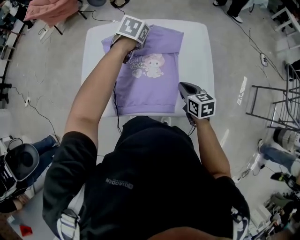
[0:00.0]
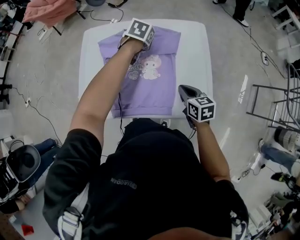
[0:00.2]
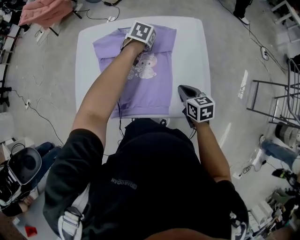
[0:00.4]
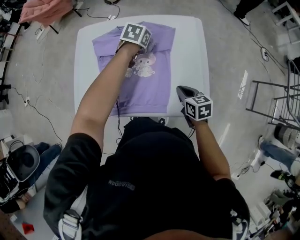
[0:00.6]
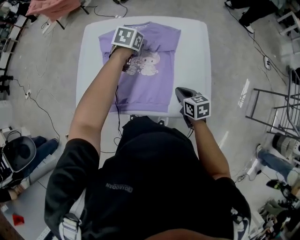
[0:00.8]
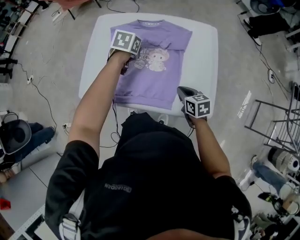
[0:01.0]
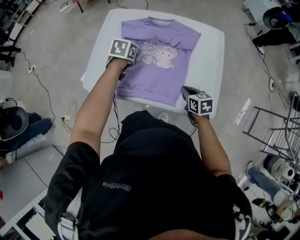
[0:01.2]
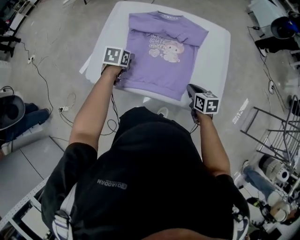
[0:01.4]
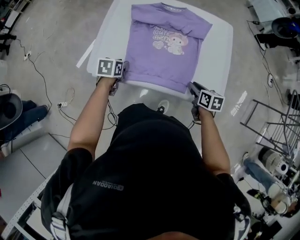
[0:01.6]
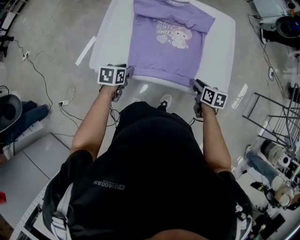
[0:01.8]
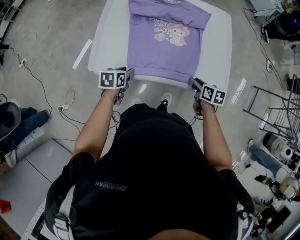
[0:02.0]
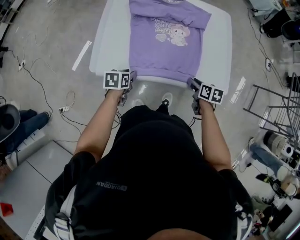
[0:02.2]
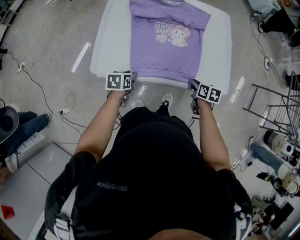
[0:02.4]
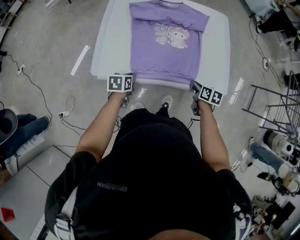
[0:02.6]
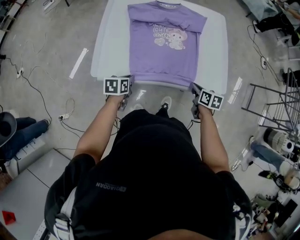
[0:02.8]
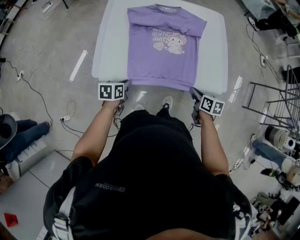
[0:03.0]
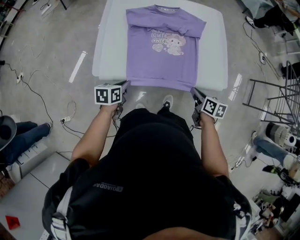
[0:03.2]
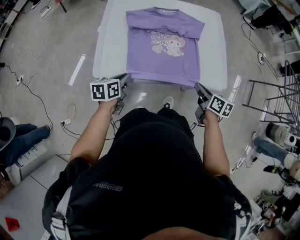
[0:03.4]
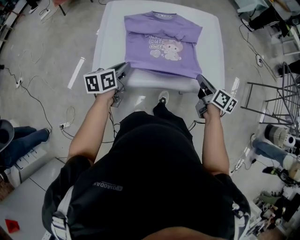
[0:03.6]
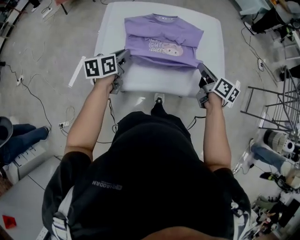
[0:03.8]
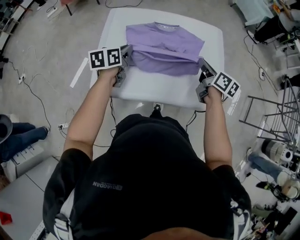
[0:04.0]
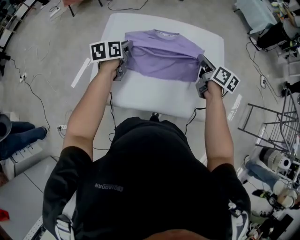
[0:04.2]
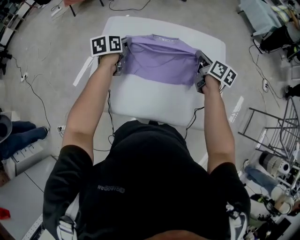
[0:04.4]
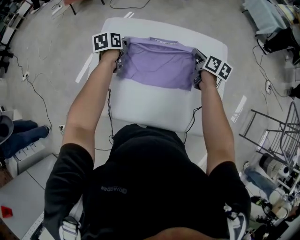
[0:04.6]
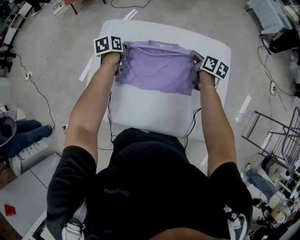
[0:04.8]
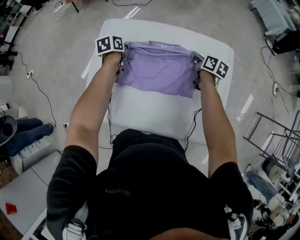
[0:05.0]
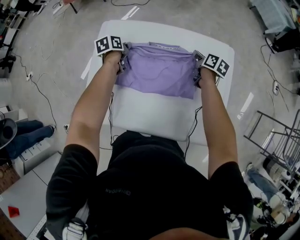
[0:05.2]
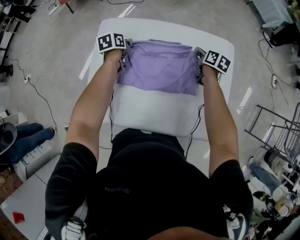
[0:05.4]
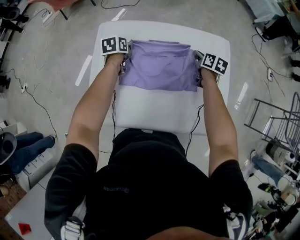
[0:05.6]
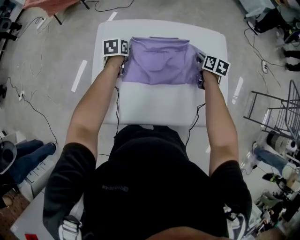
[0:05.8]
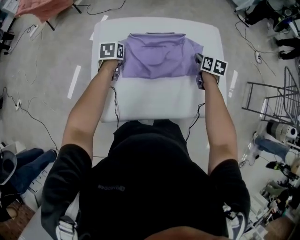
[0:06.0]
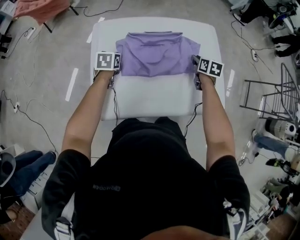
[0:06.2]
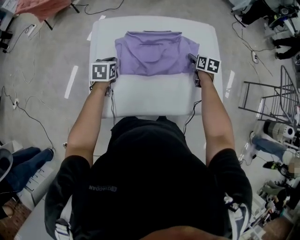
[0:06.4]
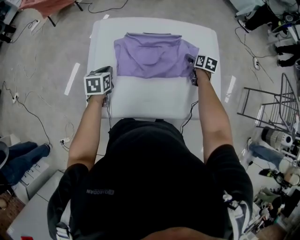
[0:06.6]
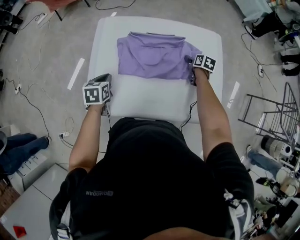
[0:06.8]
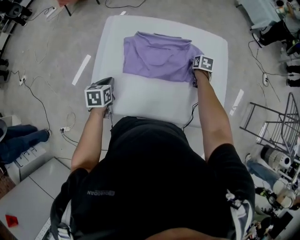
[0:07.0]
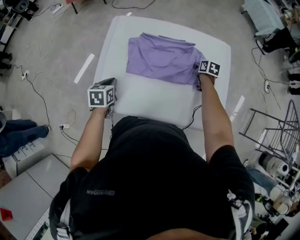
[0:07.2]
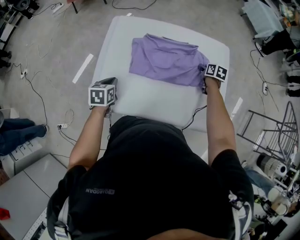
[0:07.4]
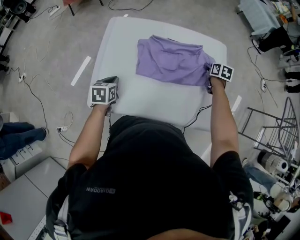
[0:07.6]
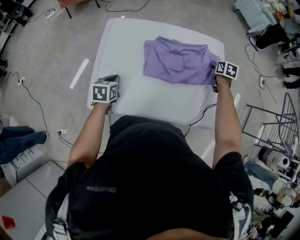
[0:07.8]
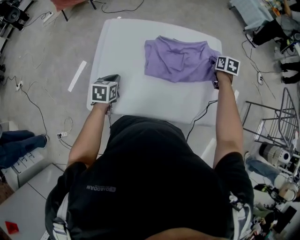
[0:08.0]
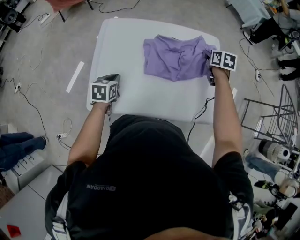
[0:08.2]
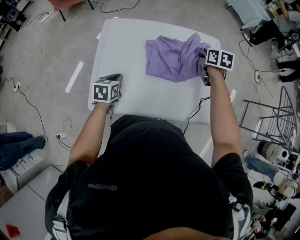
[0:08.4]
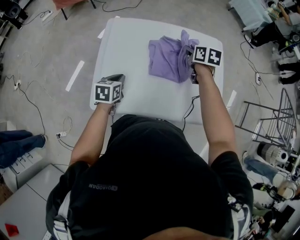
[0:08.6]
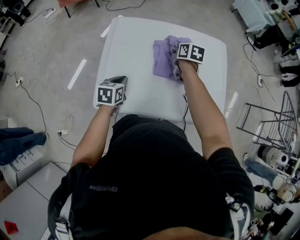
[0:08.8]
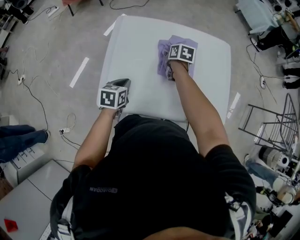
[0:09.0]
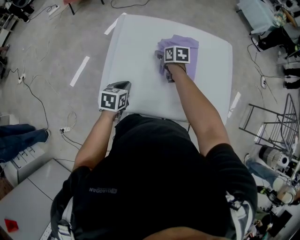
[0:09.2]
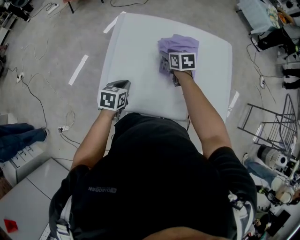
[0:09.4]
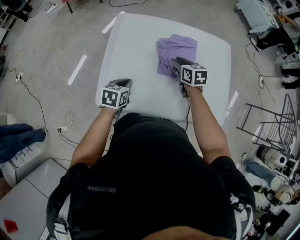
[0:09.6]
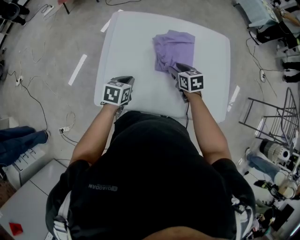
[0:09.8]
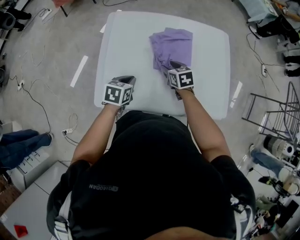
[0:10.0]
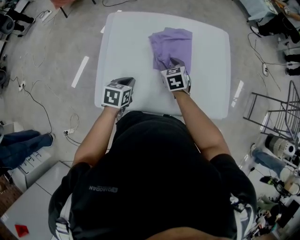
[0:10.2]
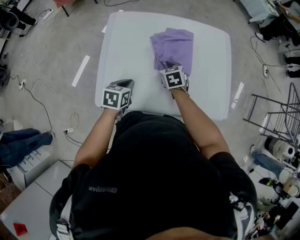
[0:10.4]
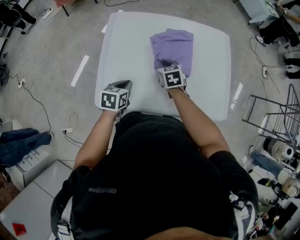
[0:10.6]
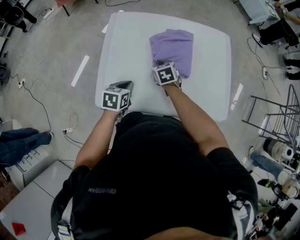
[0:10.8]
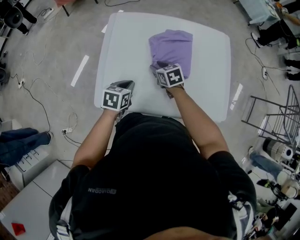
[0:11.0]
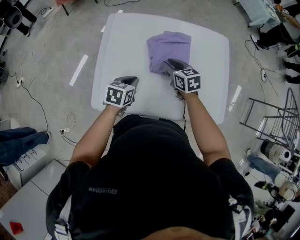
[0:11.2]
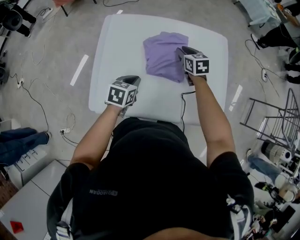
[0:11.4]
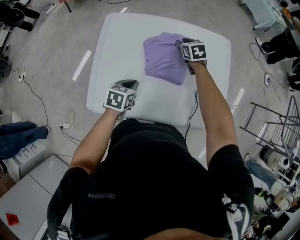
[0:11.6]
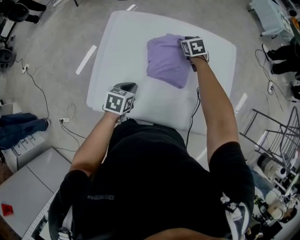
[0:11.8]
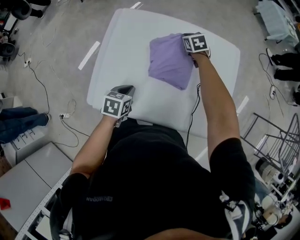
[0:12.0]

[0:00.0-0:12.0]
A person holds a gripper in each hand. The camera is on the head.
0:00.0 to 0:01.6: The right gripper moves downward and backward, some 10 cm, and opens its fingers; the left gripper goes approximately 35 cm backward, to the left and downward, rotates approximately 30 degrees, and opens up.
0:01.6 to 0:03.0: Both grippers travel together backward, about 10 cm. The right gripper closes. Meanwhile the left gripper closes.
0:03.0 to 0:04.4: The two grippers go some 40 cm forward and upward.
0:04.4 to 0:06.0: The two grippers go roughly 10 cm downward. The right gripper goes forward and returns, some 10 cm each way, and rotates roughly 30 degrees; the left gripper rotates about 20 degrees.
0:06.0 to 0:07.6: The left gripper shifts approximately 20 cm backward. The right gripper is displaced to the right by about 5 cm, and opens, then closes once more.
0:07.6 to 0:09.0: The right gripper moves to the left, roughly 25 cm, and opens.
0:09.0 to 0:10.4: The right gripper goes roughly 10 cm backward, and turns by approximately 30 degrees.
0:10.4 to 0:12.0: The right gripper is displaced forward by about 25 cm, and closes up.

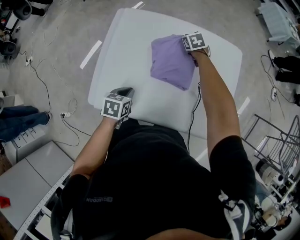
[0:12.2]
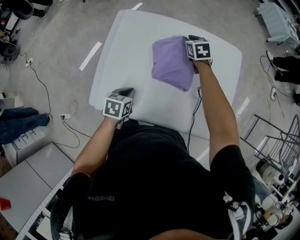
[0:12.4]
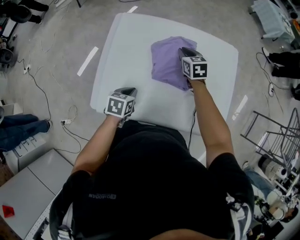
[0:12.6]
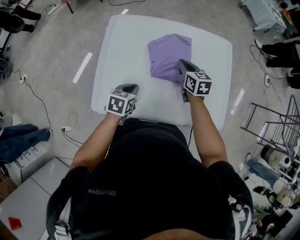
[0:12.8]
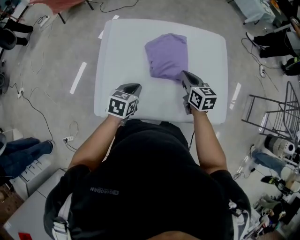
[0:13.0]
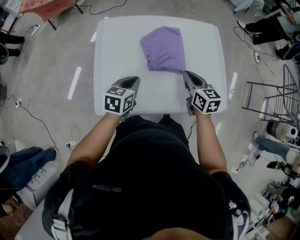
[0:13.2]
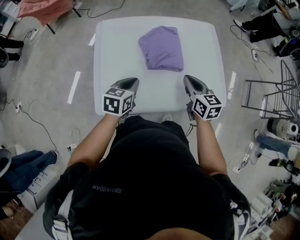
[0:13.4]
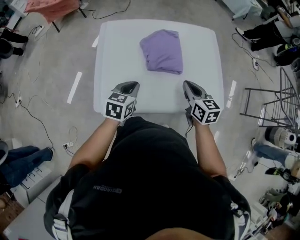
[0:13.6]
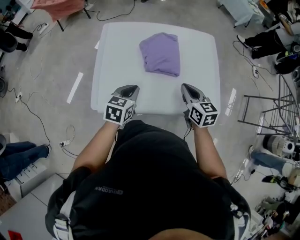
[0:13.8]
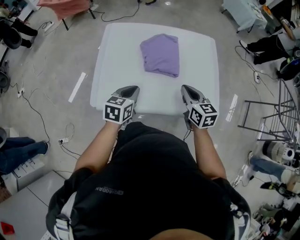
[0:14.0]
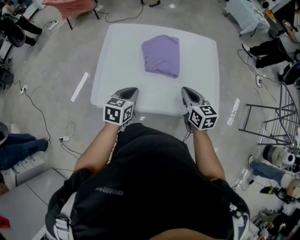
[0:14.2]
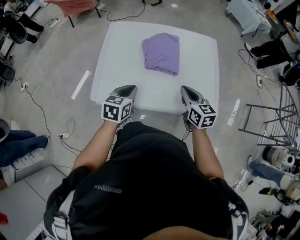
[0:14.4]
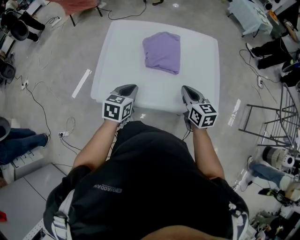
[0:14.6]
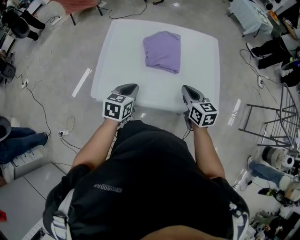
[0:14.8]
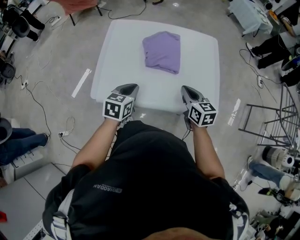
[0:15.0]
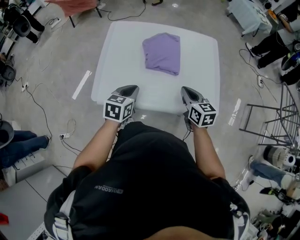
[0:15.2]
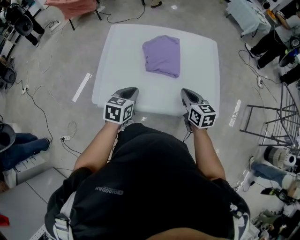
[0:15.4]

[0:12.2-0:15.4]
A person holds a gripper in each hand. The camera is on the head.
0:12.2 to 0:13.8: The left gripper is displaced upward by roughly 10 cm, and turns by about 30 degrees, while the right gripper goes about 40 cm backward and upward, and turns by some 40 degrees.
0:13.8 to 0:15.4: The grippers move only a little.

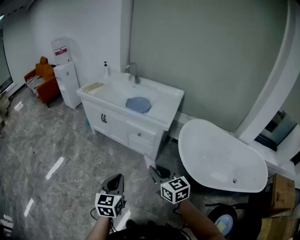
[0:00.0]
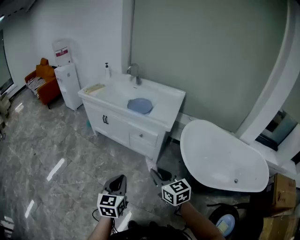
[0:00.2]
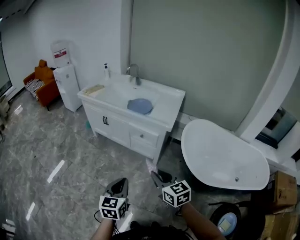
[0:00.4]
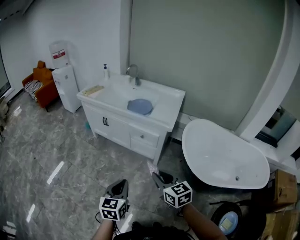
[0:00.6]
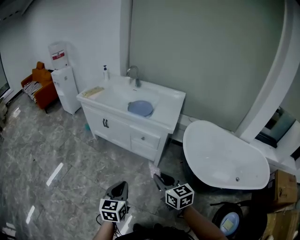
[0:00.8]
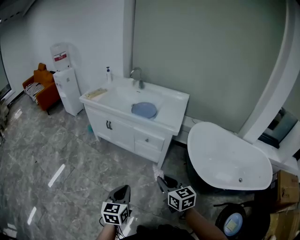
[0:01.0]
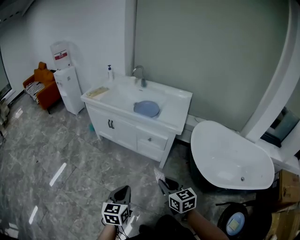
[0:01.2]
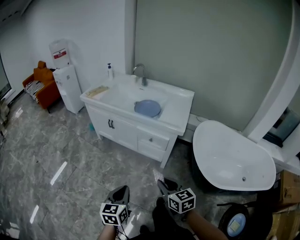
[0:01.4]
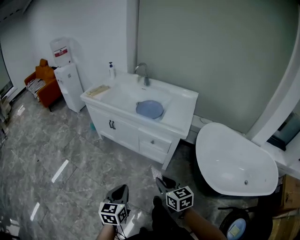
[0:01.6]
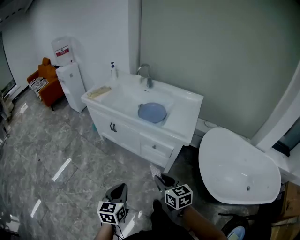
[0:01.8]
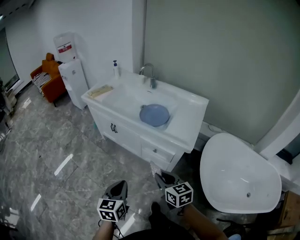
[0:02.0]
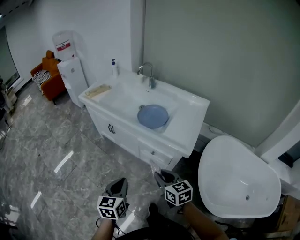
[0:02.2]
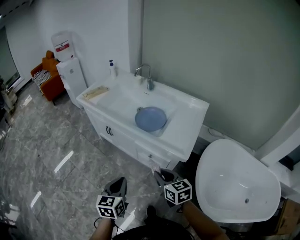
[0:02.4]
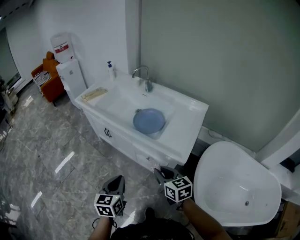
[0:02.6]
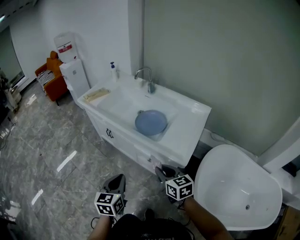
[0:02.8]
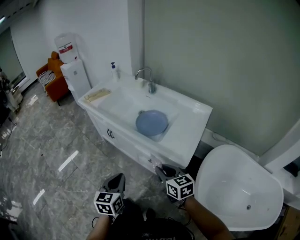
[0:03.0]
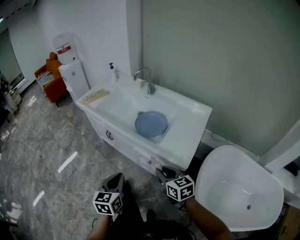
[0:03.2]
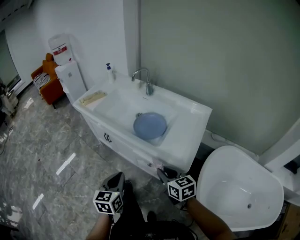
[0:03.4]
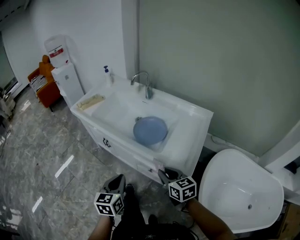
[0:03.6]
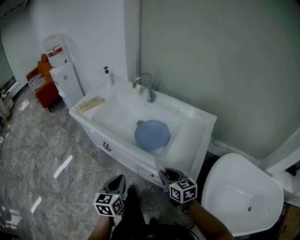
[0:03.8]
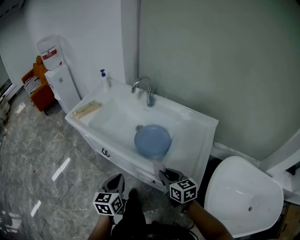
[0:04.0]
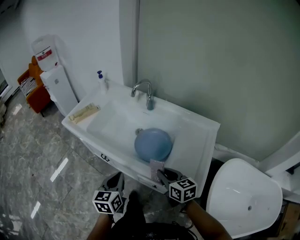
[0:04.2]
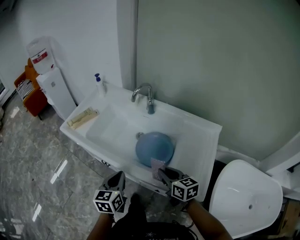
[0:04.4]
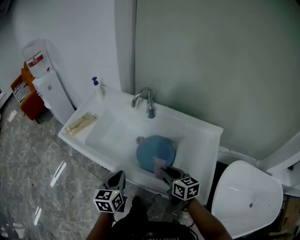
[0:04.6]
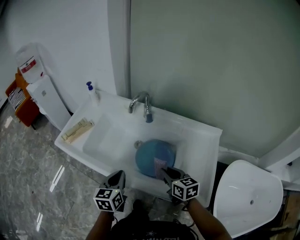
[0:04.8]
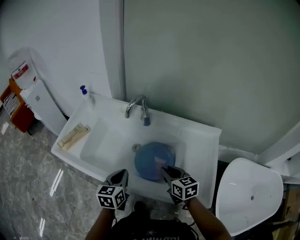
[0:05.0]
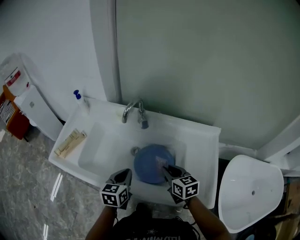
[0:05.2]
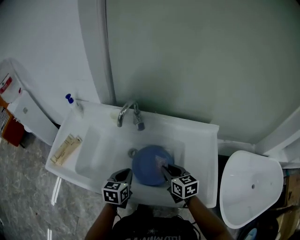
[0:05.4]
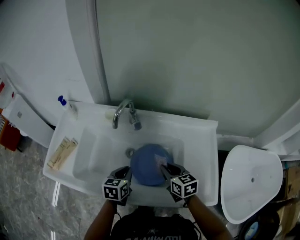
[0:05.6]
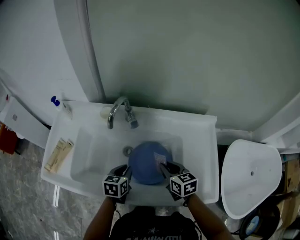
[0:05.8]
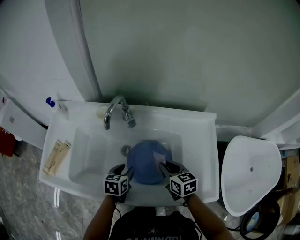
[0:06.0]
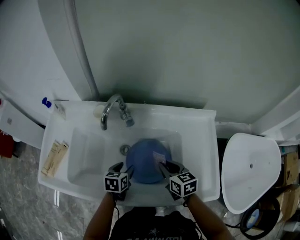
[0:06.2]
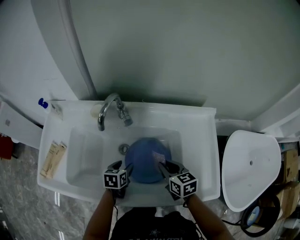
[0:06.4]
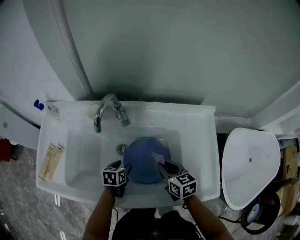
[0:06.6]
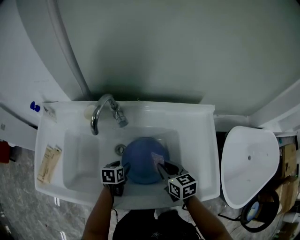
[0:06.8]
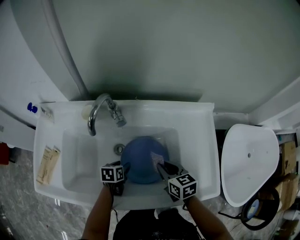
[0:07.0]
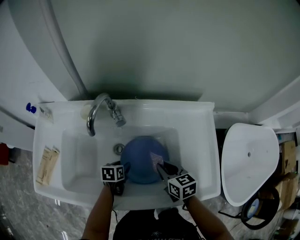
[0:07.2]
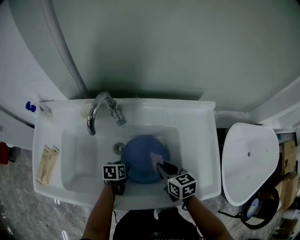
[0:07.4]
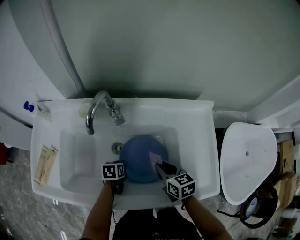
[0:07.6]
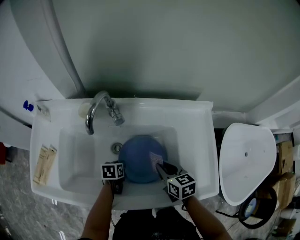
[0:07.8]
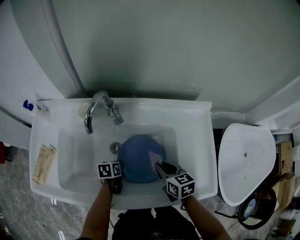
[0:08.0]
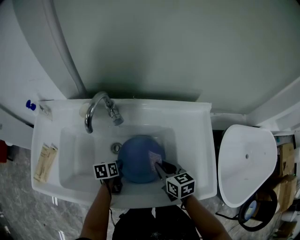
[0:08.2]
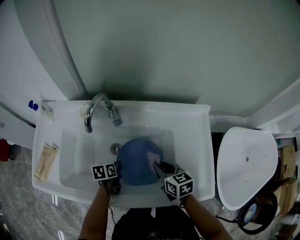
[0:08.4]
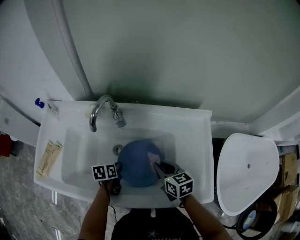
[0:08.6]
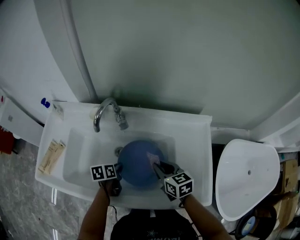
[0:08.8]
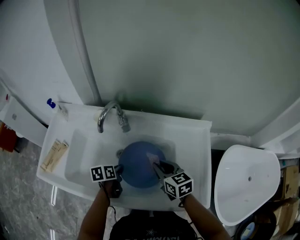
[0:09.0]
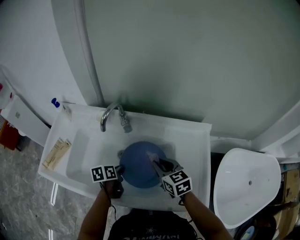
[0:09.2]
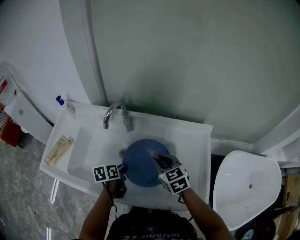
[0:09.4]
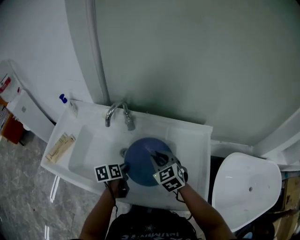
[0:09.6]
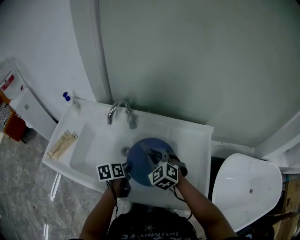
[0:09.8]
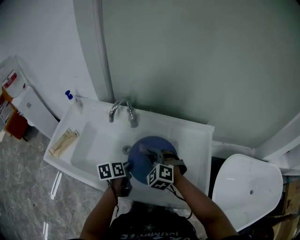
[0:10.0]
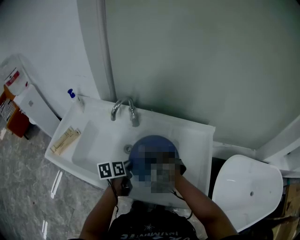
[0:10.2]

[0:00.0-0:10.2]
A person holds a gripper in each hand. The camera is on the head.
0:00.0 to 0:01.4: The right gripper shifts roughly 10 cm downward and to the left. The left gripper travels to the left and downward by about 10 cm.
0:01.4 to 0:03.0: Both grippers travel together forward and to the right, approximately 30 cm.
0:03.0 to 0:04.4: Both grippers move forward, some 25 cm.
0:04.4 to 0:05.8: The right gripper ends up some 15 cm from where it was, and swivels some 20 degrees, while the left gripper ends up some 25 cm from where it was, and swivels about 30 degrees.
0:05.8 to 0:07.2: The left gripper travels downward by about 10 cm, turns by roughly 20 degrees, and opens its fingers.
0:07.2 to 0:08.8: The left gripper heads upward, covering about 5 cm, and closes its fingers.
0:08.8 to 0:10.2: The left gripper travels upward by approximately 10 cm, while the right gripper is displaced to the left by approximately 5 cm, and twists about 80 degrees counterclockwise, seen from behind.
